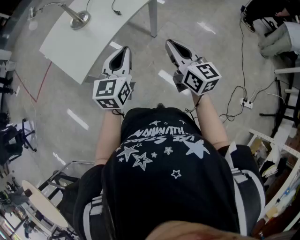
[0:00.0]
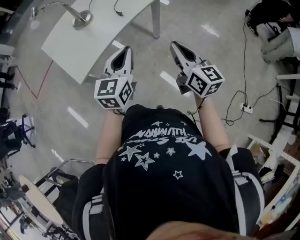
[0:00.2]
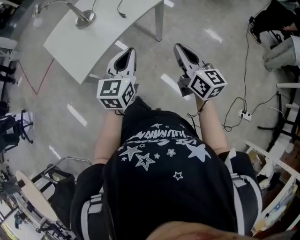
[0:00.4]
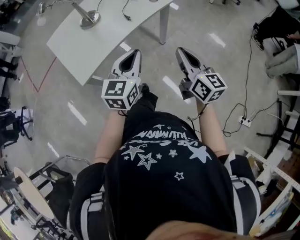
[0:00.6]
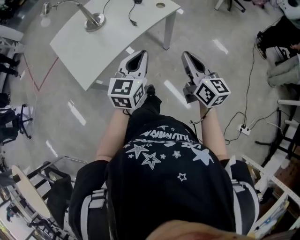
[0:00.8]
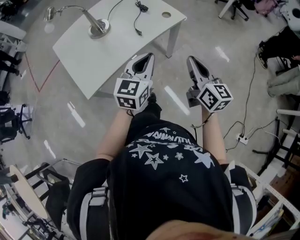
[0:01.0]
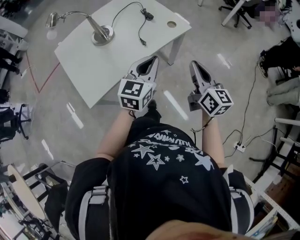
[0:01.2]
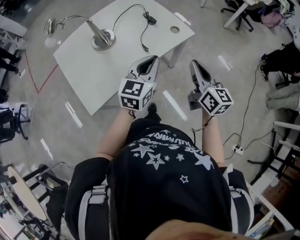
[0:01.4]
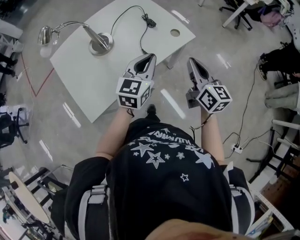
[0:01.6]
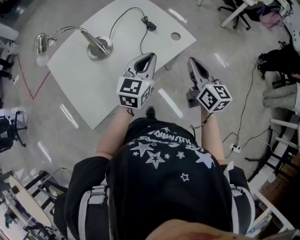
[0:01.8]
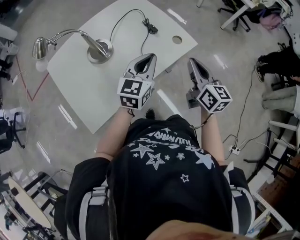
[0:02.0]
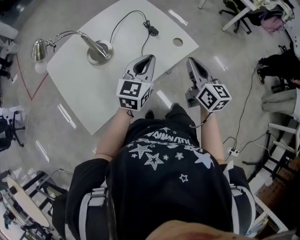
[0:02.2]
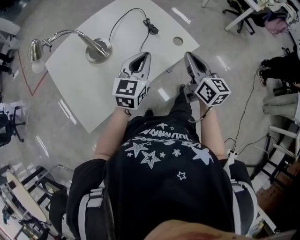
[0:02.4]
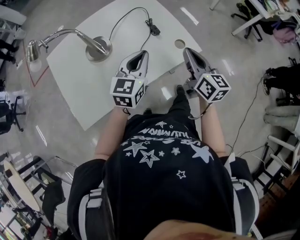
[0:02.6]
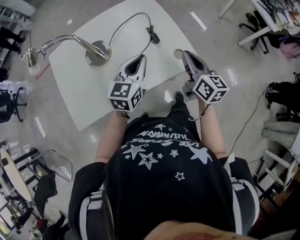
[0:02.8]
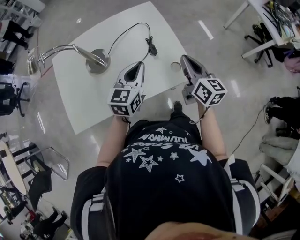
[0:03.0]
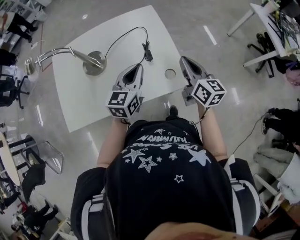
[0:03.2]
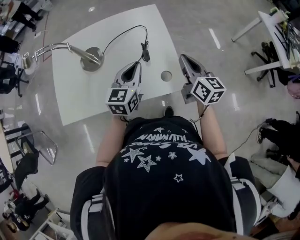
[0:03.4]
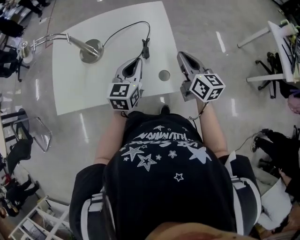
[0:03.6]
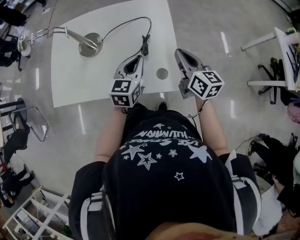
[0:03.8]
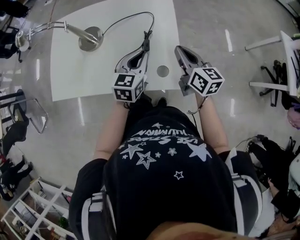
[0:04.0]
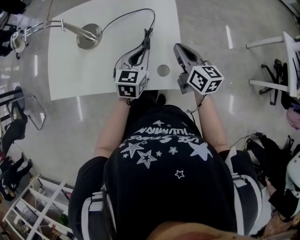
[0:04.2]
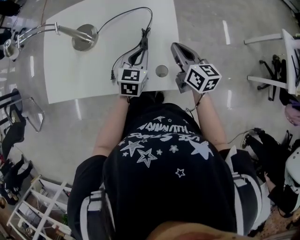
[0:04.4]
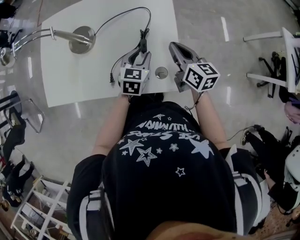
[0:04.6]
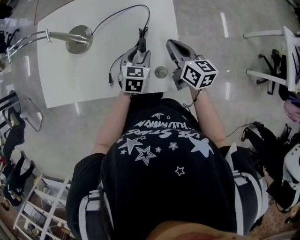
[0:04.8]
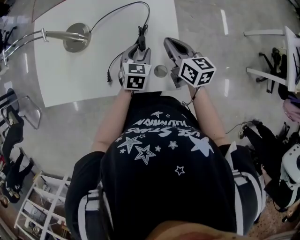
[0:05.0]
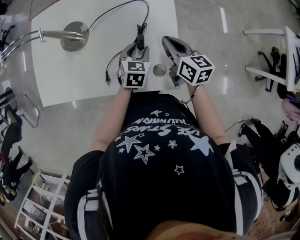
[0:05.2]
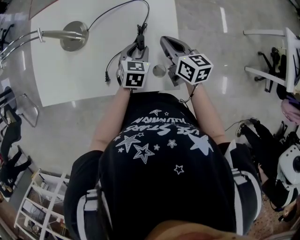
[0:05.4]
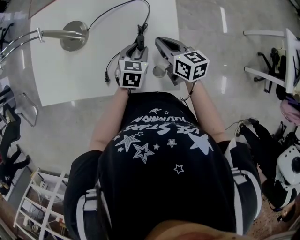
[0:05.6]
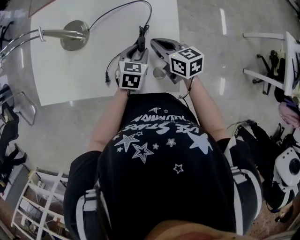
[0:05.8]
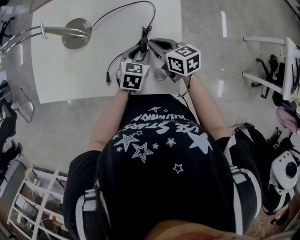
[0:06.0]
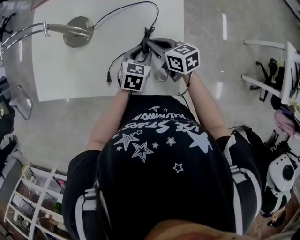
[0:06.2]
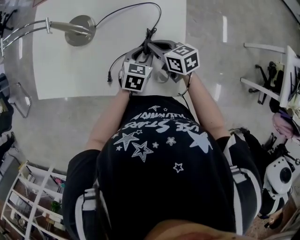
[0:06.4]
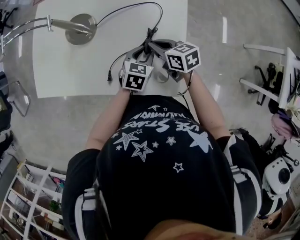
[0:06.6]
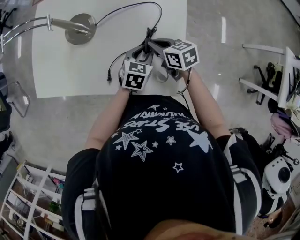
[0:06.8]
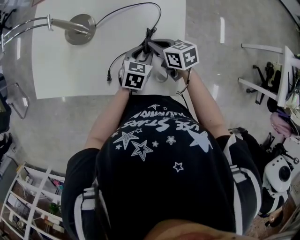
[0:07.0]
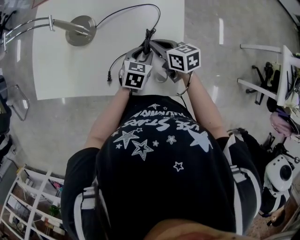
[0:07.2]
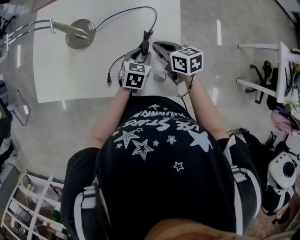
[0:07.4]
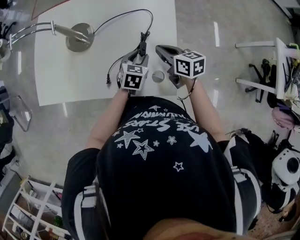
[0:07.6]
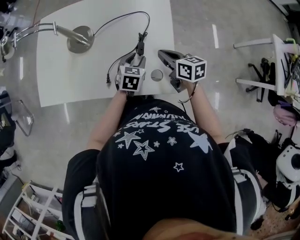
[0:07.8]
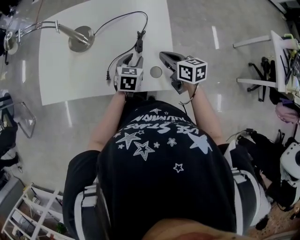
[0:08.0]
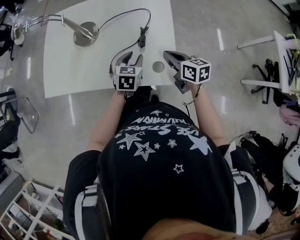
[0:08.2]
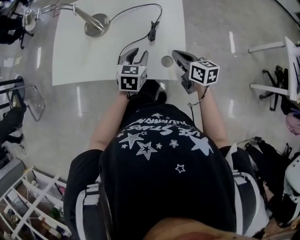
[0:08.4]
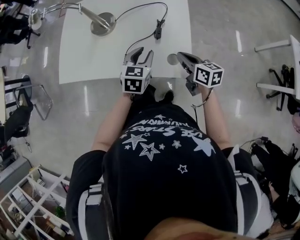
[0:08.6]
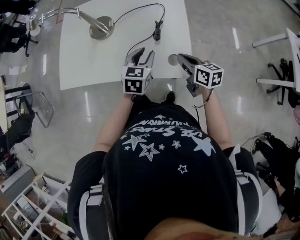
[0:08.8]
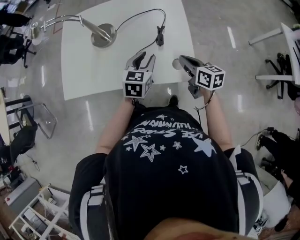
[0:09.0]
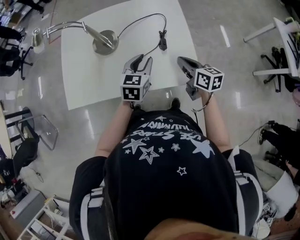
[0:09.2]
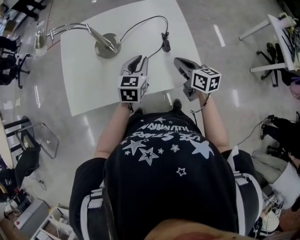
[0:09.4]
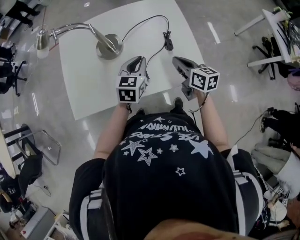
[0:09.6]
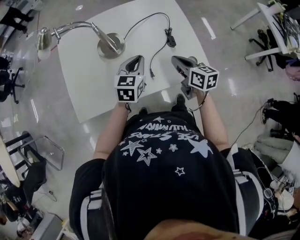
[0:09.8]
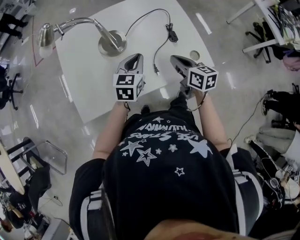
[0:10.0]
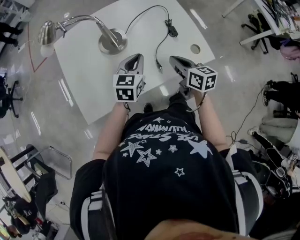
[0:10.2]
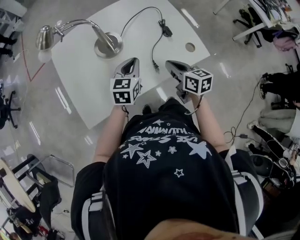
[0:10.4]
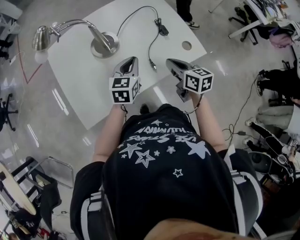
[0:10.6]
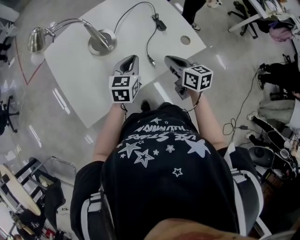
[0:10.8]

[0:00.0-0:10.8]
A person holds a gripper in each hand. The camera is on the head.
0:00.0 to 0:01.6: Both grippers travel together forward, approximately 25 cm.
0:01.6 to 0:03.0: The two grippers go approximately 20 cm forward. The left gripper changes its angle by about 20 degrees. Meanwhile the right gripper rotates about 20 degrees.
0:03.0 to 0:04.6: The left gripper heads downward, forward and to the right, covering roughly 15 cm, changes its angle by roughly 30 degrees, and opens up; the right gripper travels forward and downward by about 15 cm, and changes its angle by approximately 30 degrees.
0:04.6 to 0:06.2: The right gripper goes about 10 cm to the left and downward, and rotates approximately 30 degrees. The left gripper ends up roughly 5 cm from where it was.
0:06.2 to 0:07.8: The right gripper travels backward by about 5 cm.
0:07.8 to 0:09.2: The right gripper travels backward by approximately 5 cm; the left gripper heads upward and to the left, covering approximately 15 cm.
0:09.2 to 0:10.8: The left gripper travels to the left by some 15 cm, turns by about 20 degrees, and closes up; the right gripper goes about 15 cm to the left and backward, and swivels approximately 20 degrees.

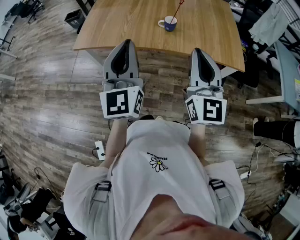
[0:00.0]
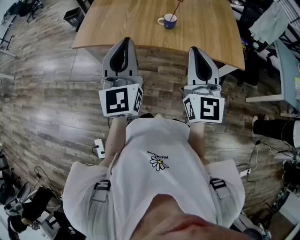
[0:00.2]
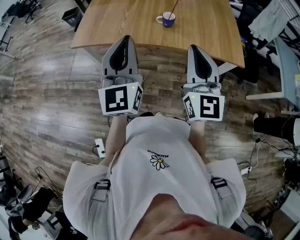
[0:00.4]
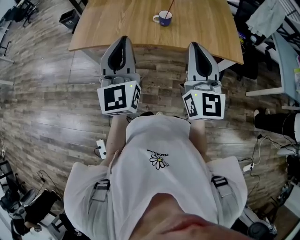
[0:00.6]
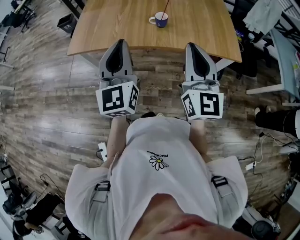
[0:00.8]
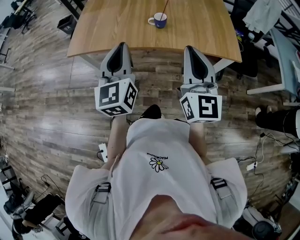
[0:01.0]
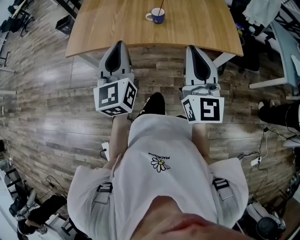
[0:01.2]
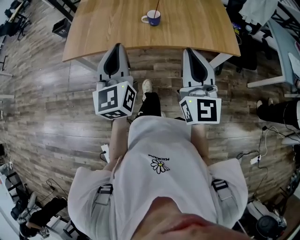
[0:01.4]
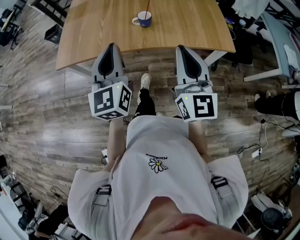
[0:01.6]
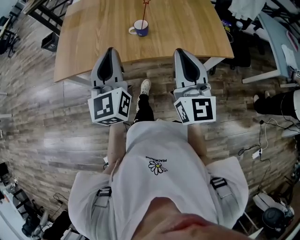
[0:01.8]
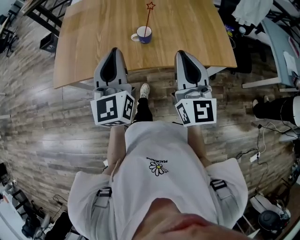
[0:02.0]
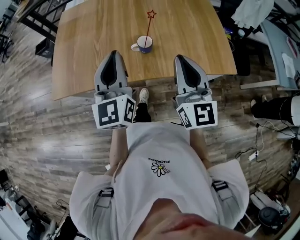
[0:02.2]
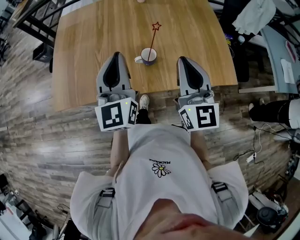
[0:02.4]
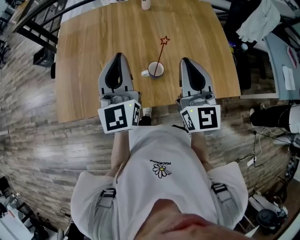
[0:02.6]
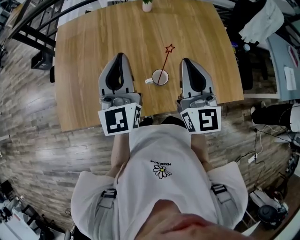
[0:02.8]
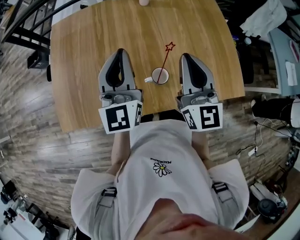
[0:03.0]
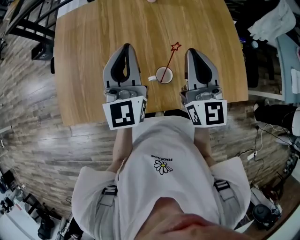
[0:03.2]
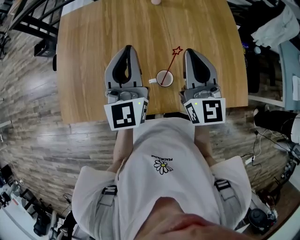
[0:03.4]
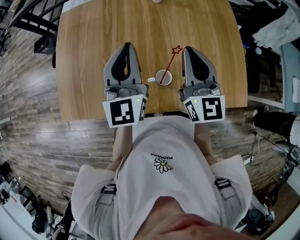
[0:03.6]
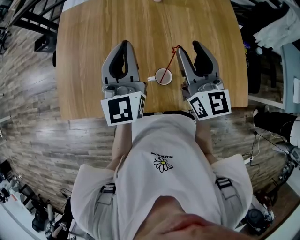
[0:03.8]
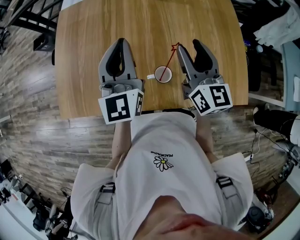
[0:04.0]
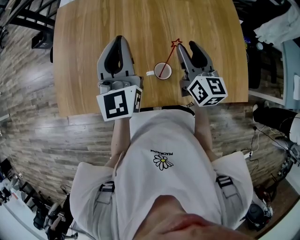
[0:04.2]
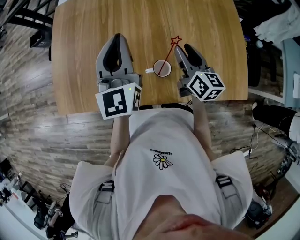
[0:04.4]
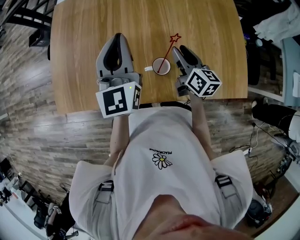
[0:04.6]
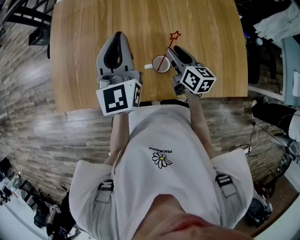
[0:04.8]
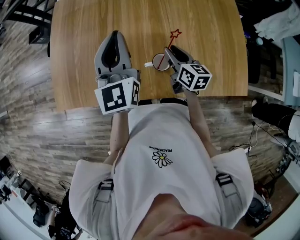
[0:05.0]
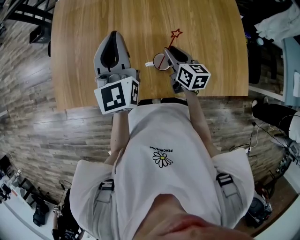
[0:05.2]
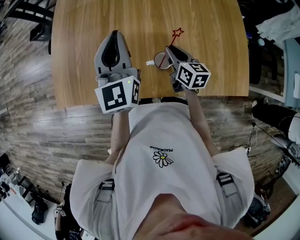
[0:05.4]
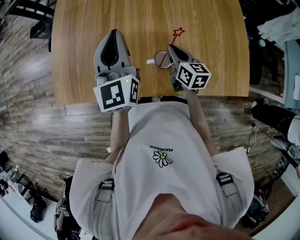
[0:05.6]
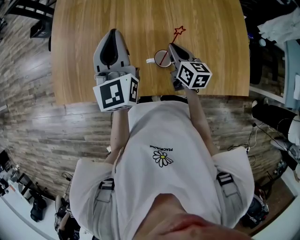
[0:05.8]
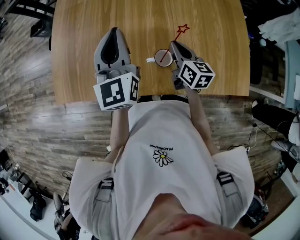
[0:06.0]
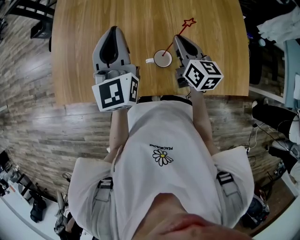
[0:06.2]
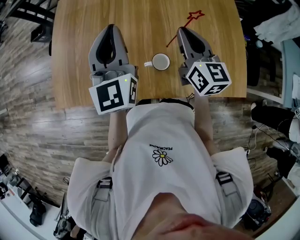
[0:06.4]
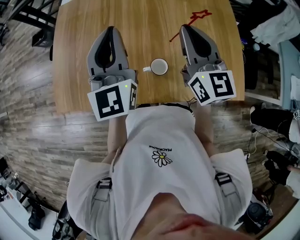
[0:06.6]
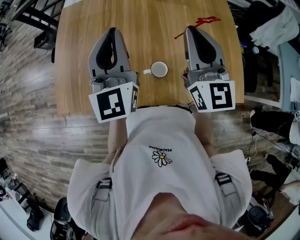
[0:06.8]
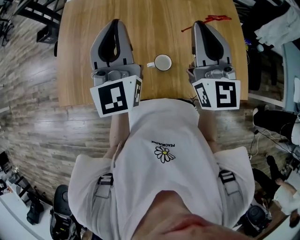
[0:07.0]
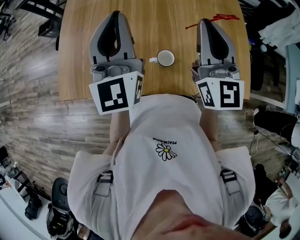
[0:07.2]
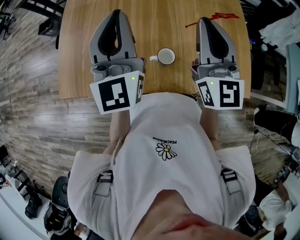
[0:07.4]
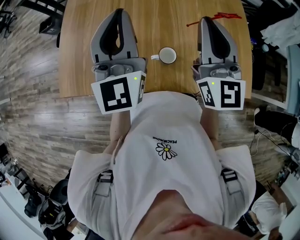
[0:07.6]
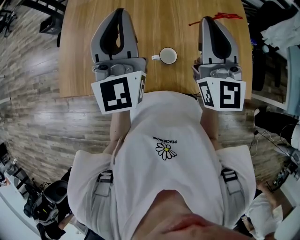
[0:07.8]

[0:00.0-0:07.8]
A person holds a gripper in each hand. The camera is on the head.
0:00.0 to 0:01.6: The left gripper goes some 5 cm forward. Meanwhile the right gripper shifts by approximately 5 cm.
0:01.6 to 0:03.2: Both grippers move forward, some 35 cm.
0:03.2 to 0:04.6: The right gripper moves downward, some 20 cm, rotates some 40 degrees, and opens up.
0:04.6 to 0:06.2: The right gripper closes.
0:06.2 to 0:07.8: The left gripper goes about 10 cm upward; the right gripper heads upward, covering roughly 20 cm, and changes its angle by roughly 40 degrees.

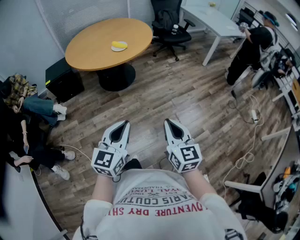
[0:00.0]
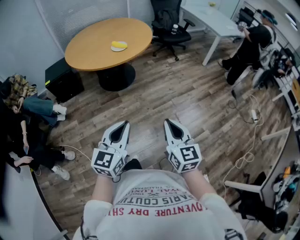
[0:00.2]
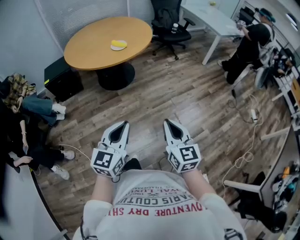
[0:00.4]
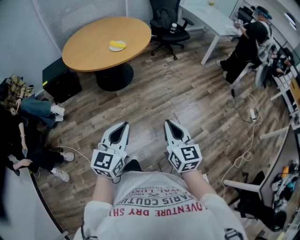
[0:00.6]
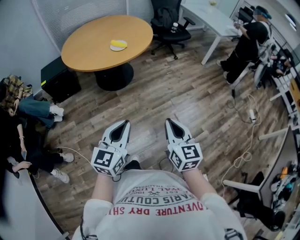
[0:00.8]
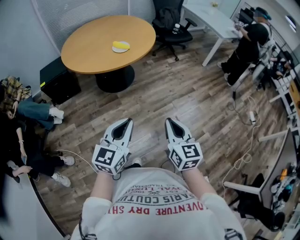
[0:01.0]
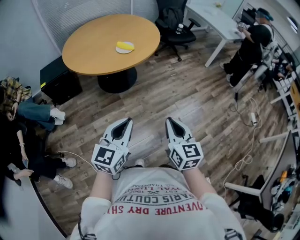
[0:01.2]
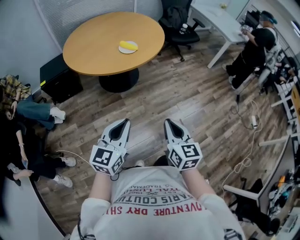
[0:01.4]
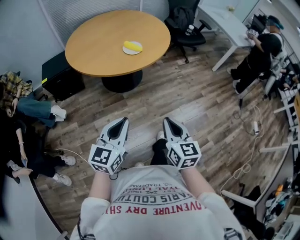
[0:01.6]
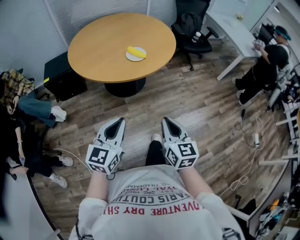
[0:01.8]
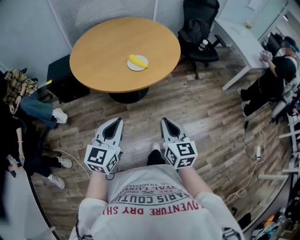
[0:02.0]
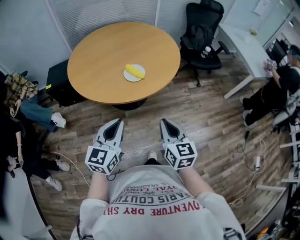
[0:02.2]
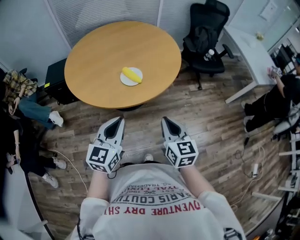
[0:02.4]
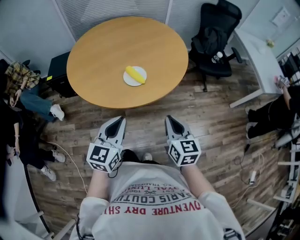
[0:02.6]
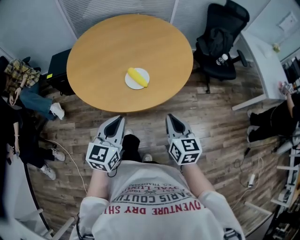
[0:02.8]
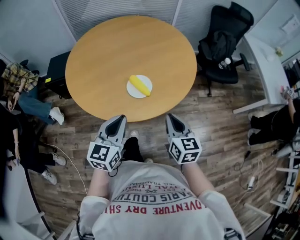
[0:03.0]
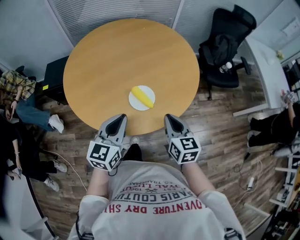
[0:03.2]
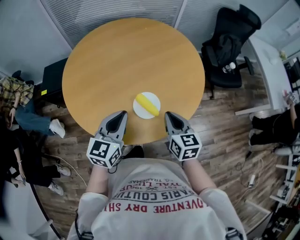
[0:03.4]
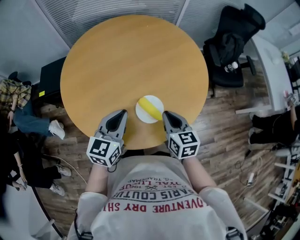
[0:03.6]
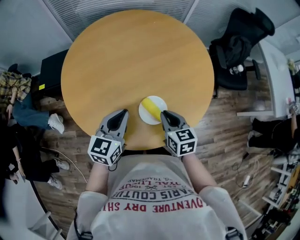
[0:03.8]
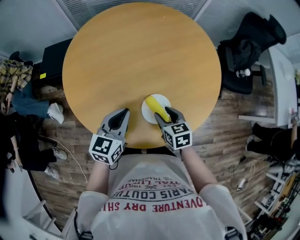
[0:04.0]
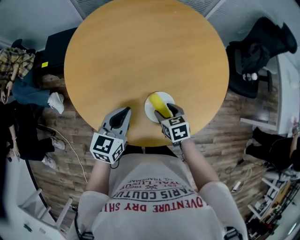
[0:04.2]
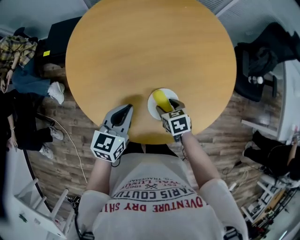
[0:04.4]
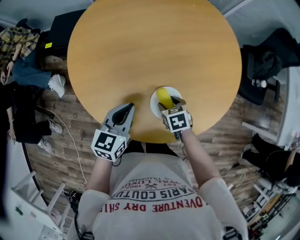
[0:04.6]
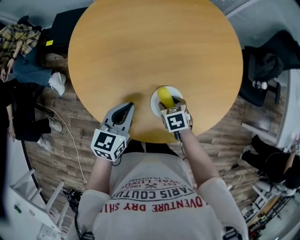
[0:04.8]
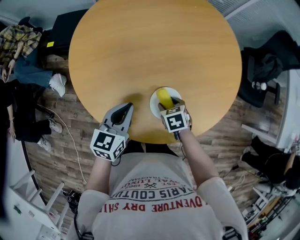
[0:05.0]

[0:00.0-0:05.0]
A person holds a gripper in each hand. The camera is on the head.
0:00.0 to 0:01.6: Both grippers move forward and to the left, roughly 25 cm.
0:01.6 to 0:03.4: The pair of grippers is taken forward, approximately 50 cm.
0:03.4 to 0:05.0: The left gripper travels downward, to the left and forward by about 15 cm, and changes its angle by some 20 degrees. Meanwhile the right gripper moves downward and forward, roughly 25 cm, points its fingers some 40 degrees further downward, and opens up.
